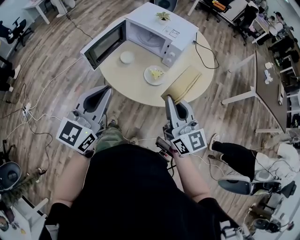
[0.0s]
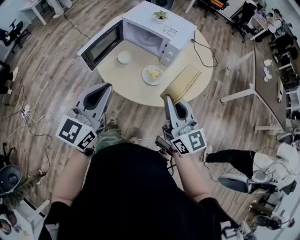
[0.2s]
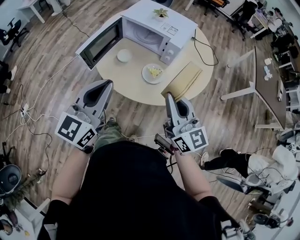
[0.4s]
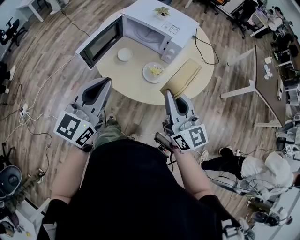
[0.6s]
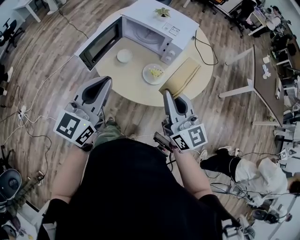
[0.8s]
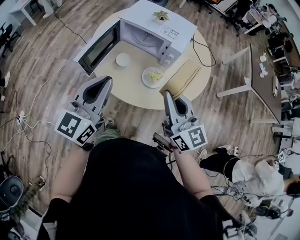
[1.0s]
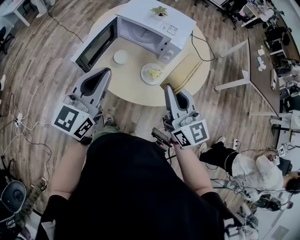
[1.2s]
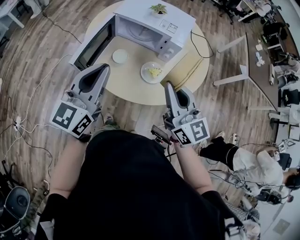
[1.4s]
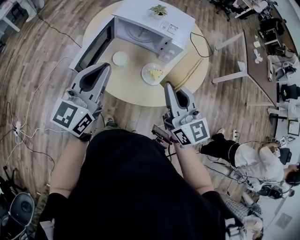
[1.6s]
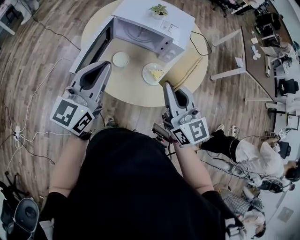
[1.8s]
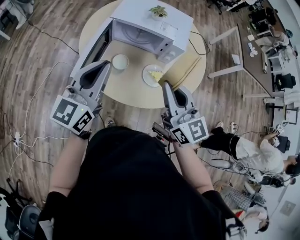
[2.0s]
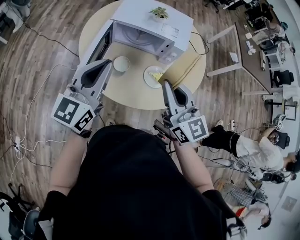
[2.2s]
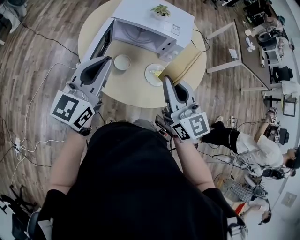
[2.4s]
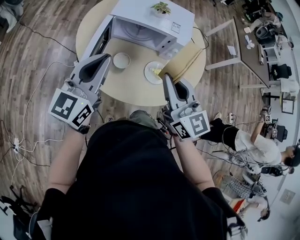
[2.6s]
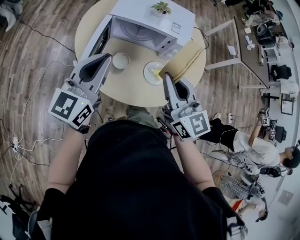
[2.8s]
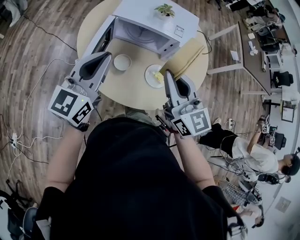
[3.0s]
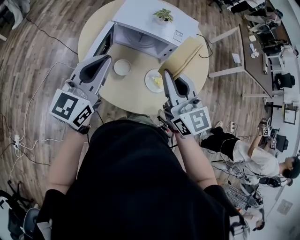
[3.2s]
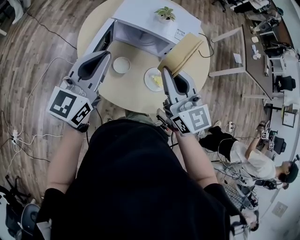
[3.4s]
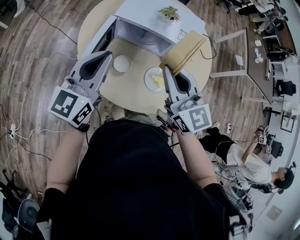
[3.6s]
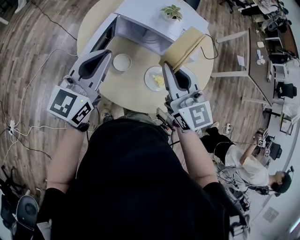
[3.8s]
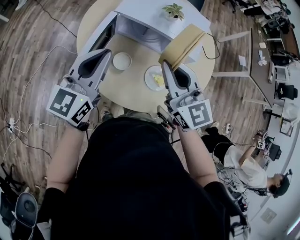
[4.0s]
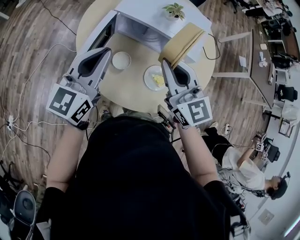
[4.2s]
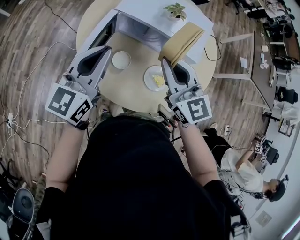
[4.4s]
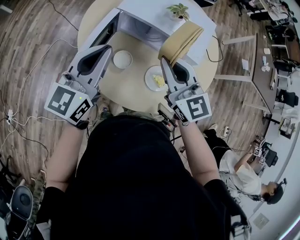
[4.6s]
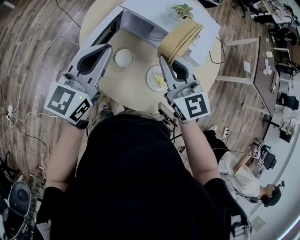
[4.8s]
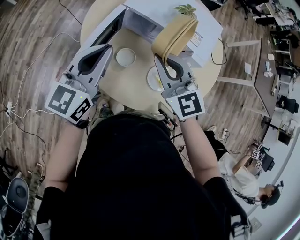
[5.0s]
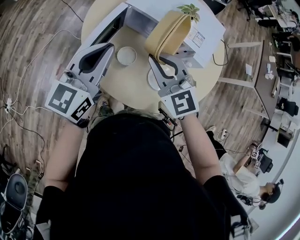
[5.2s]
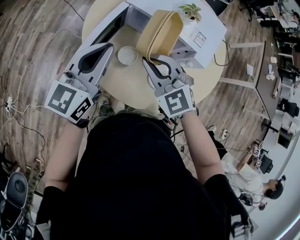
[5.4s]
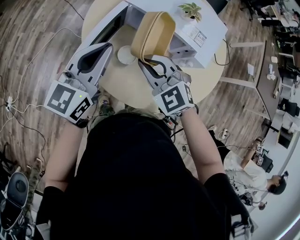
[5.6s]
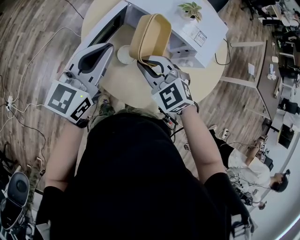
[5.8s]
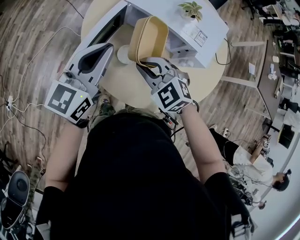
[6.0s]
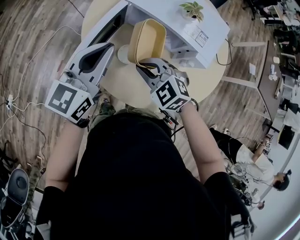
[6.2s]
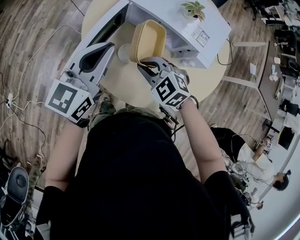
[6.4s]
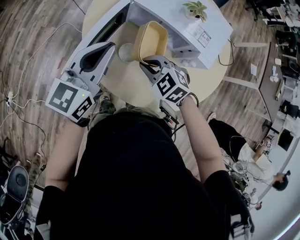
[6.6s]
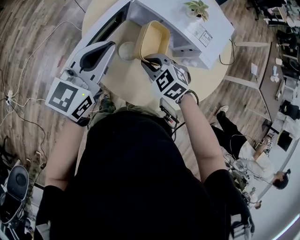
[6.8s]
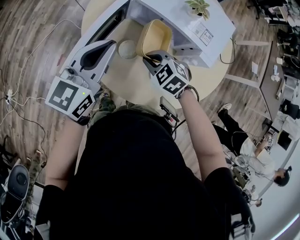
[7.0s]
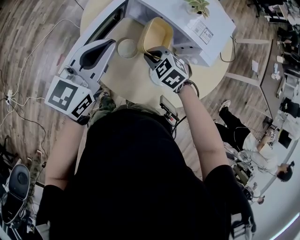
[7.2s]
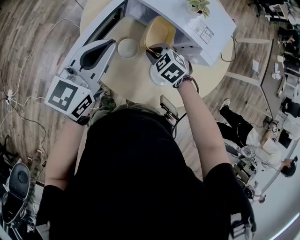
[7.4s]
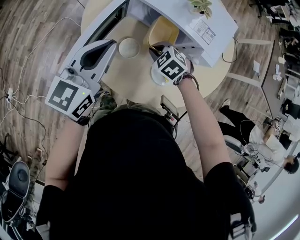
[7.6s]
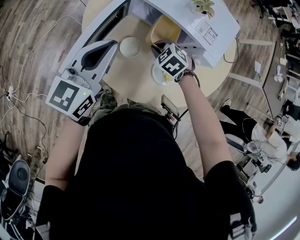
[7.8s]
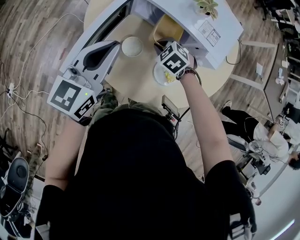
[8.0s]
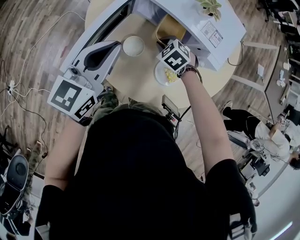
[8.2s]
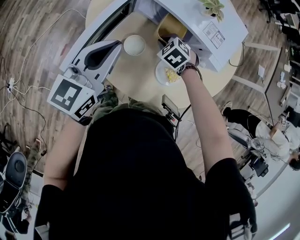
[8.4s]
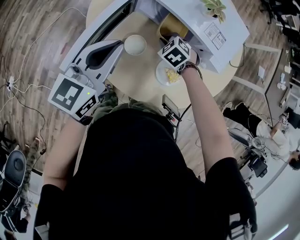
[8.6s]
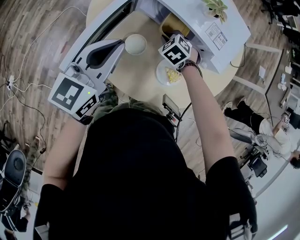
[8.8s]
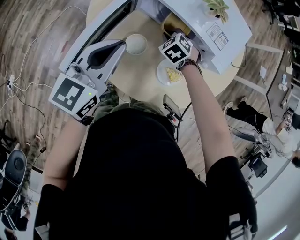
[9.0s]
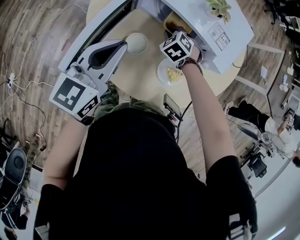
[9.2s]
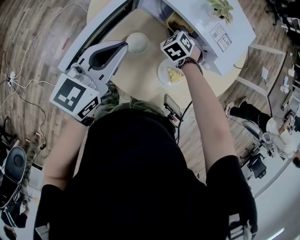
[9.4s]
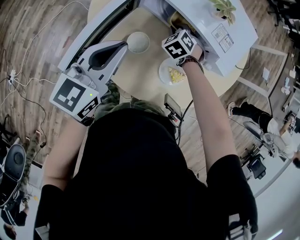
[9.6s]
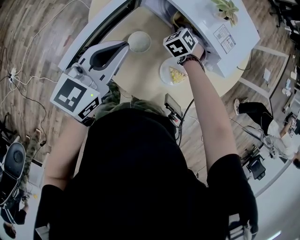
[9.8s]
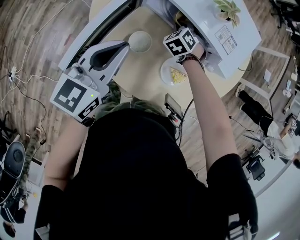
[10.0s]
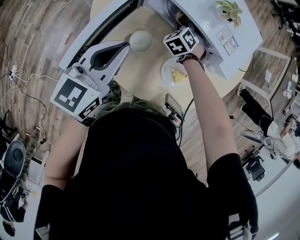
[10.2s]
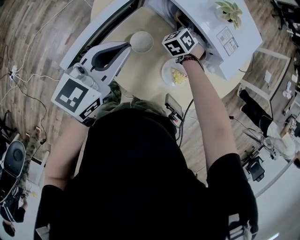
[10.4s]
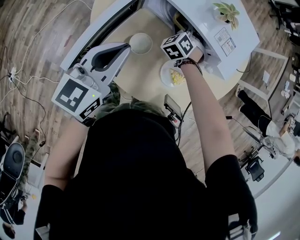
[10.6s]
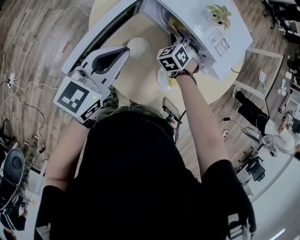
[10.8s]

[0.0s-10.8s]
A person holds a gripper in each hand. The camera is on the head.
0.0s to 1.6s: Both grippers move forward and to the left, about 15 cm.
1.6s to 3.0s: Both grippers travel together forward and to the left, about 10 cm.
3.0s to 4.6s: The right gripper travels forward by roughly 10 cm. The left gripper is displaced forward by some 5 cm.
4.6s to 6.2s: The right gripper heads downward and to the left, covering some 15 cm, and tips its fingers downward by about 30 degrees.
6.2s to 7.8s: The right gripper heads downward, to the right and forward, covering some 15 cm, and rotates roughly 30 degrees.
7.8s to 9.2s: The right gripper travels forward by about 5 cm.
9.2s to 10.8s: The right gripper turns by roughly 20 degrees, and opens its fingers.

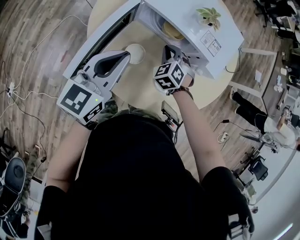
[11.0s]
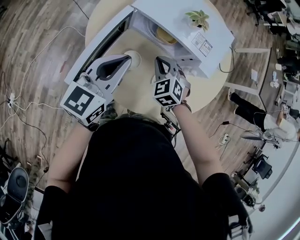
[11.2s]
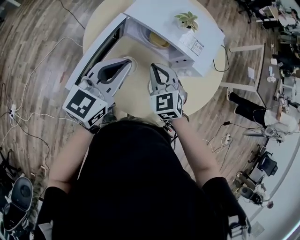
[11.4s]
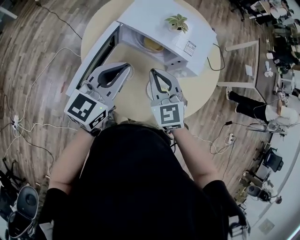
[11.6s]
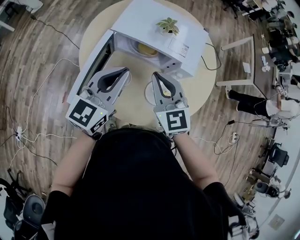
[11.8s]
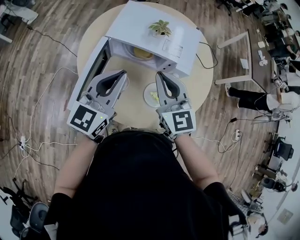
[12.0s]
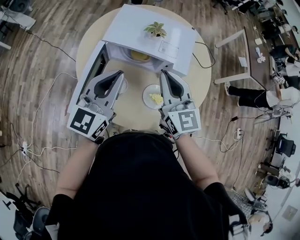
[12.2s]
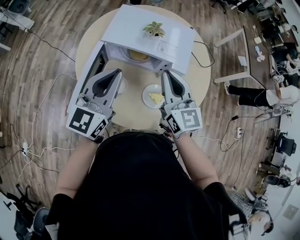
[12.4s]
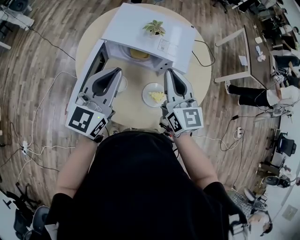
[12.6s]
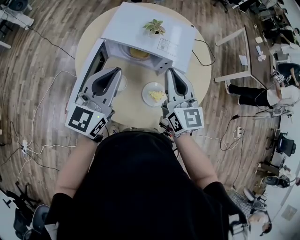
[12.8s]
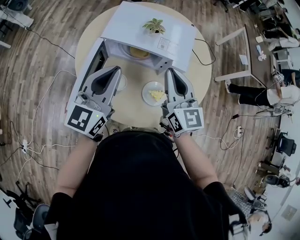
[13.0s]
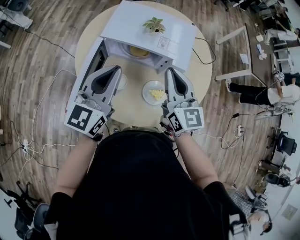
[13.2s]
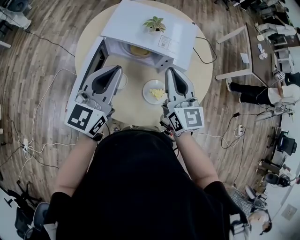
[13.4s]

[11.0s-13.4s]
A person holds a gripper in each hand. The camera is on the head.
11.0s to 12.2s: The right gripper goes about 25 cm upward, and tilts its fingers some 50 degrees upward. Meanwhile the left gripper travels upward and to the right by about 10 cm.
12.2s to 13.4s: The grippers move only a little.

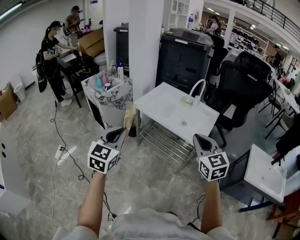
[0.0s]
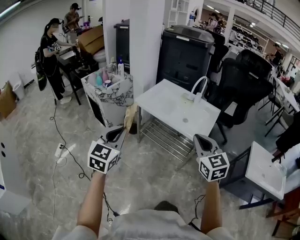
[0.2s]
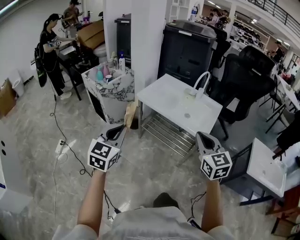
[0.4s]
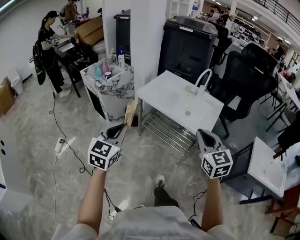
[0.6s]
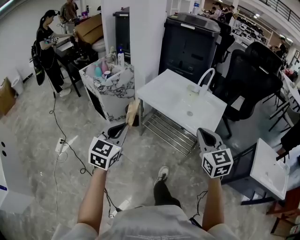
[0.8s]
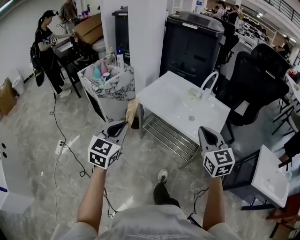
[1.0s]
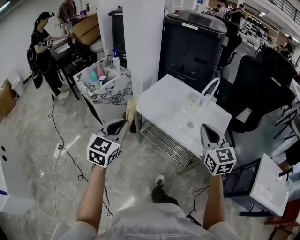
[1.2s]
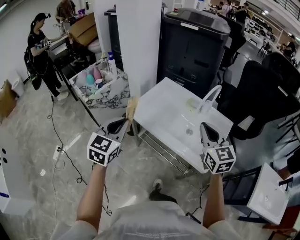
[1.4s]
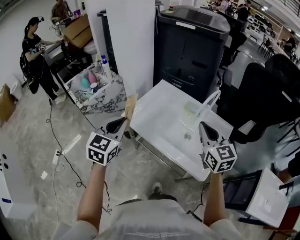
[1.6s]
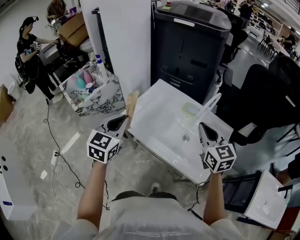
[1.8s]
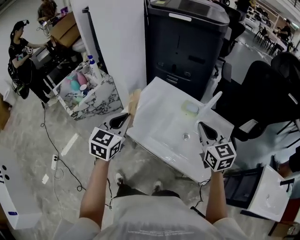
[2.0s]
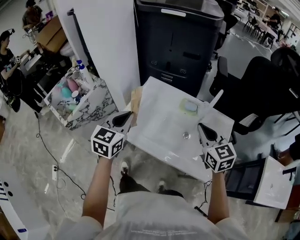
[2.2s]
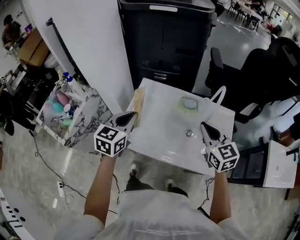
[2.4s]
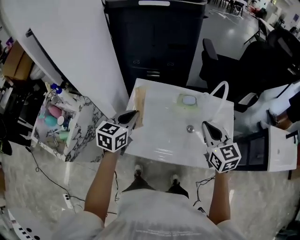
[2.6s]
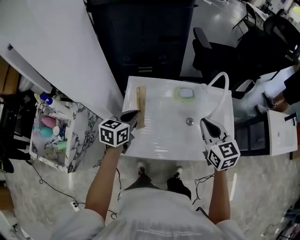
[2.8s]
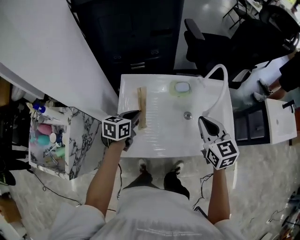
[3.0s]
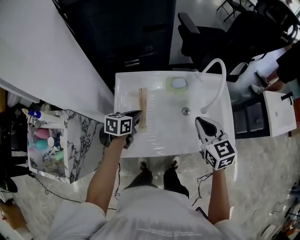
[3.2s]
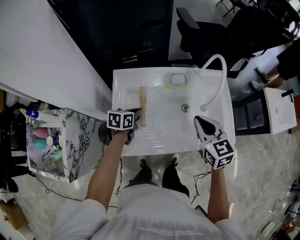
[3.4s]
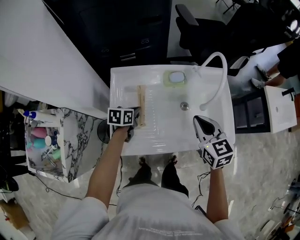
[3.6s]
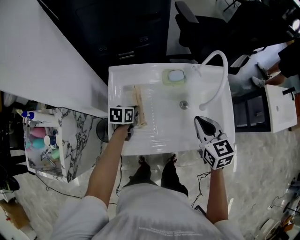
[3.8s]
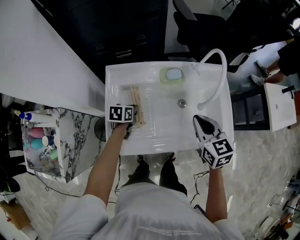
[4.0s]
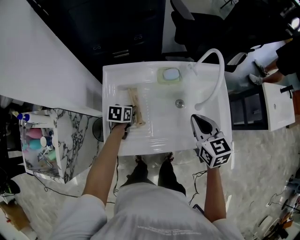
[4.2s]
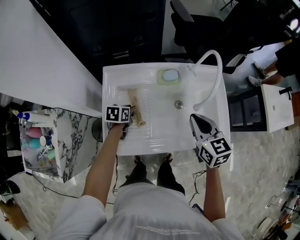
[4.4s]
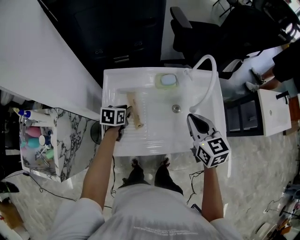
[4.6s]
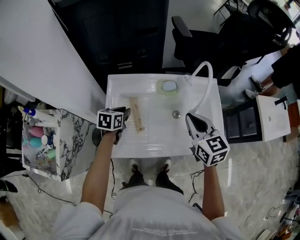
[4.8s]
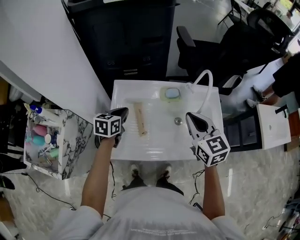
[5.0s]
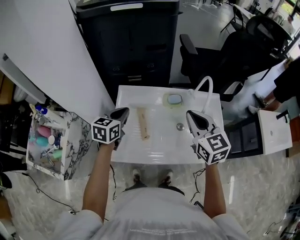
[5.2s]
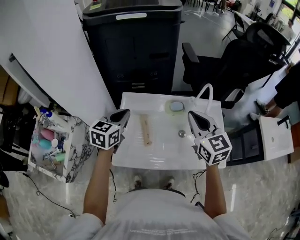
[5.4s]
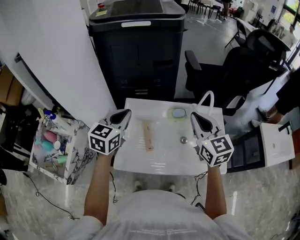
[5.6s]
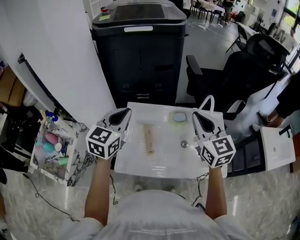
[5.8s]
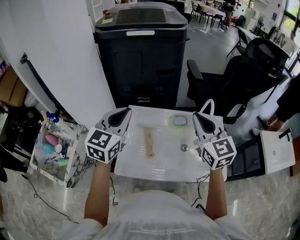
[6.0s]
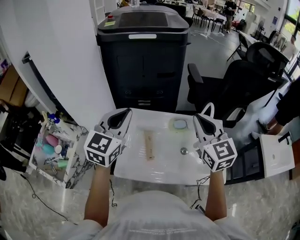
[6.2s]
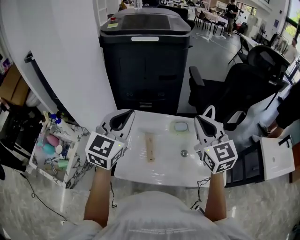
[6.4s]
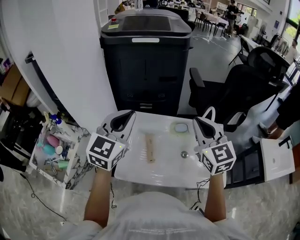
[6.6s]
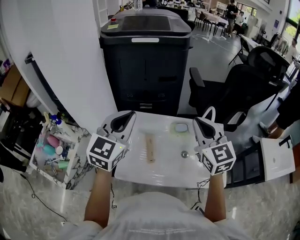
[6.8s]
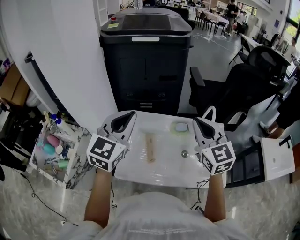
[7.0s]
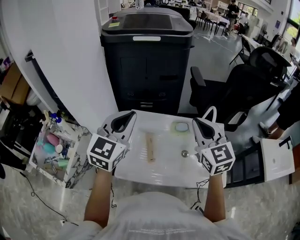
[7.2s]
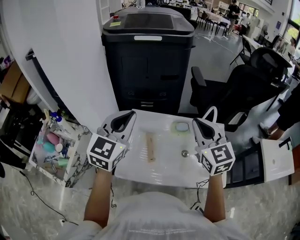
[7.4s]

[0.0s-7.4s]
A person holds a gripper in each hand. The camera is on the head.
0.0s to 1.4s: Both grippers travel together forward, about 30 cm.
1.4s to 3.0s: The right gripper ends up some 25 cm from where it was, and turns by approximately 40 degrees. The left gripper ends up approximately 50 cm from where it was, and changes its angle by approximately 60 degrees.
3.0s to 4.4s: The left gripper is displaced downward by some 15 cm, and turns by some 20 degrees. The right gripper ends up about 5 cm from where it was.
4.4s to 6.0s: The left gripper shifts approximately 40 cm upward, and tilts its fingers approximately 40 degrees upward, while the right gripper goes roughly 20 cm upward, and changes its angle by approximately 30 degrees.
6.0s to 7.4s: The grippers make only small movements.

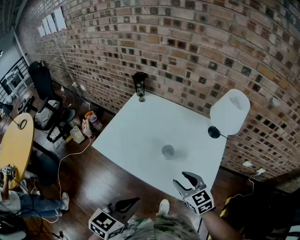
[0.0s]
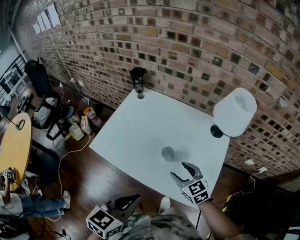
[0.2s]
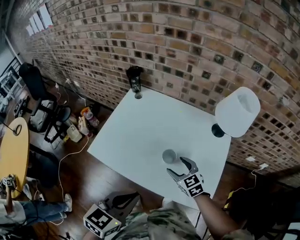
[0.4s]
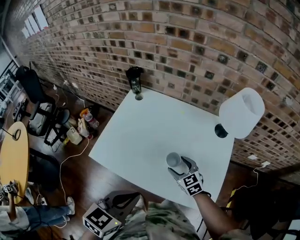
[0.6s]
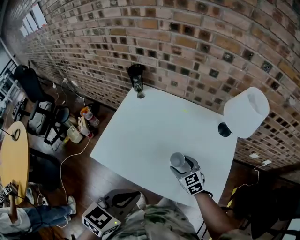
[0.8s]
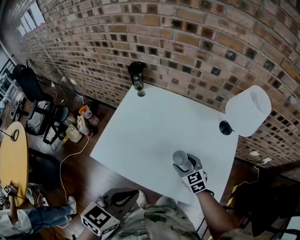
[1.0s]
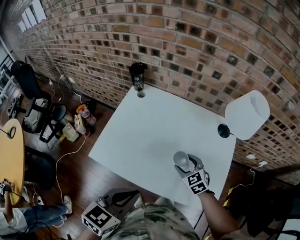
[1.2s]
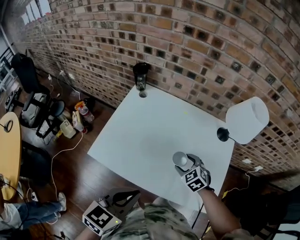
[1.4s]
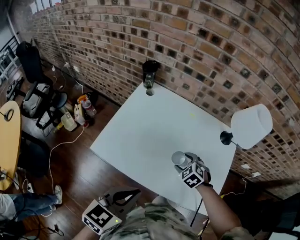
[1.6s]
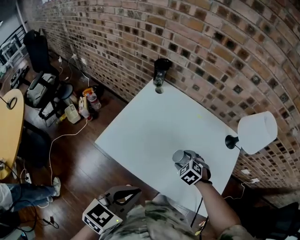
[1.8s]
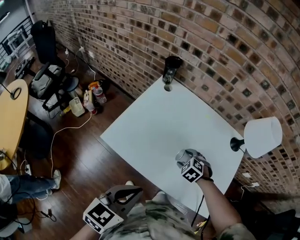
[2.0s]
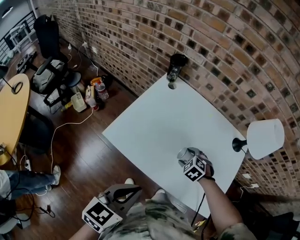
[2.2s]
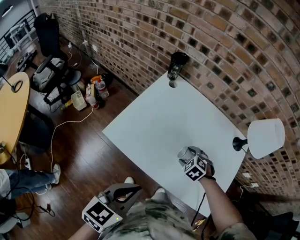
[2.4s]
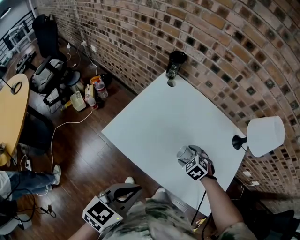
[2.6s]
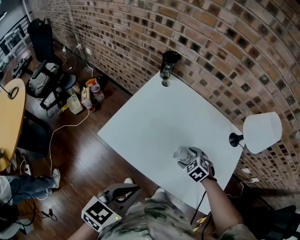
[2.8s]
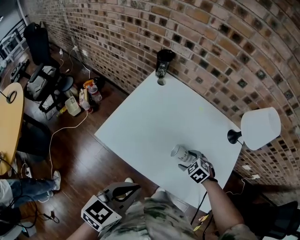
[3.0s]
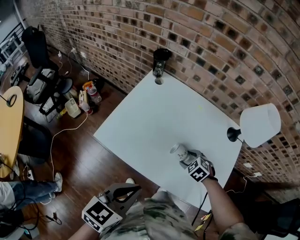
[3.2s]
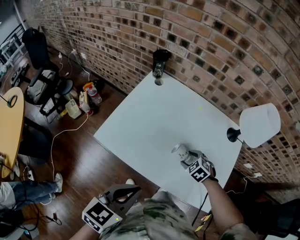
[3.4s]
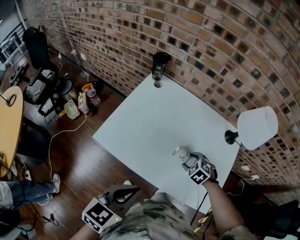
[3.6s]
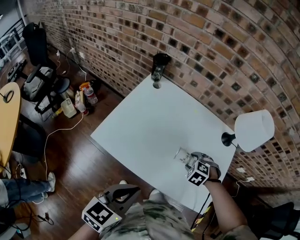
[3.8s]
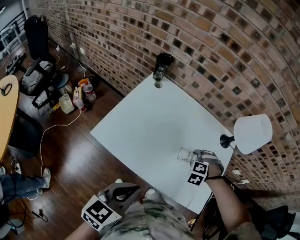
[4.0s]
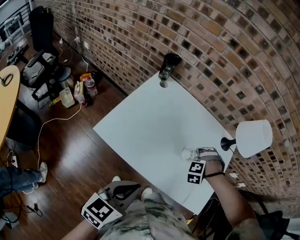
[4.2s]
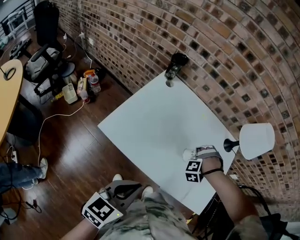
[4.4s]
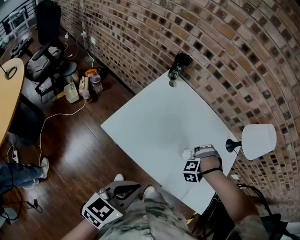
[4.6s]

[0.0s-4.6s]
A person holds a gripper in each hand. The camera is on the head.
0.0s to 1.6s: The right gripper travels forward, downward and to the left by roughly 25 cm, and points its fingers about 30 degrees further downward. Meanwhile the left gripper goes about 15 cm forward and to the left.
3.0s to 4.6s: The right gripper turns by approximately 80 degrees.
